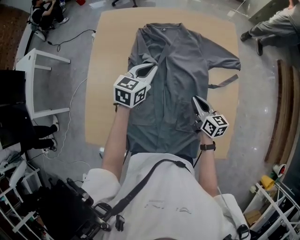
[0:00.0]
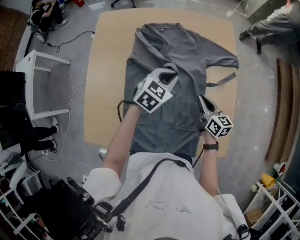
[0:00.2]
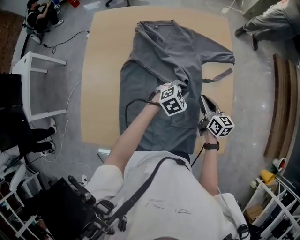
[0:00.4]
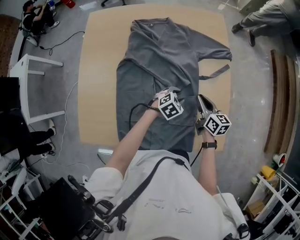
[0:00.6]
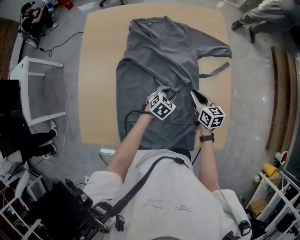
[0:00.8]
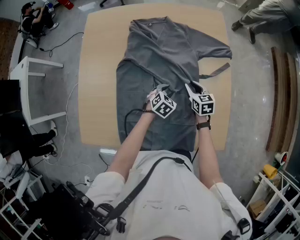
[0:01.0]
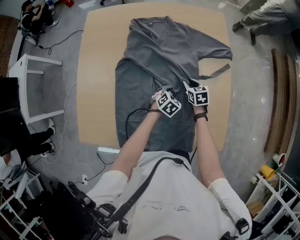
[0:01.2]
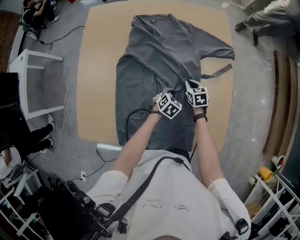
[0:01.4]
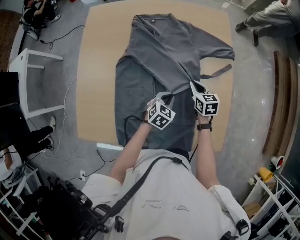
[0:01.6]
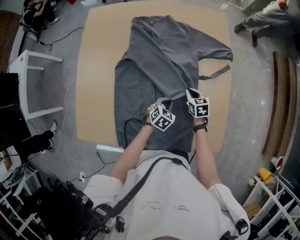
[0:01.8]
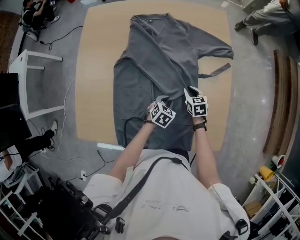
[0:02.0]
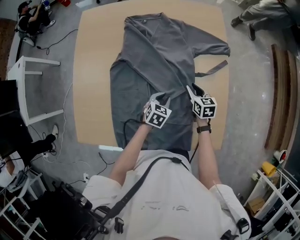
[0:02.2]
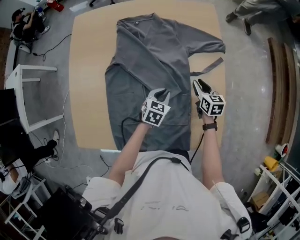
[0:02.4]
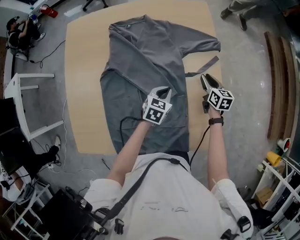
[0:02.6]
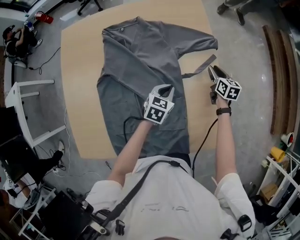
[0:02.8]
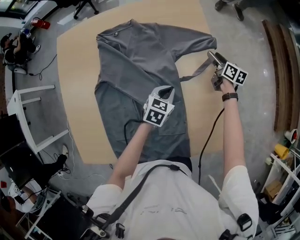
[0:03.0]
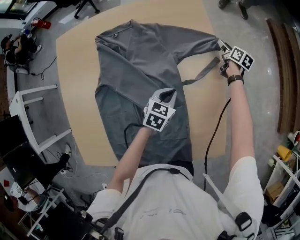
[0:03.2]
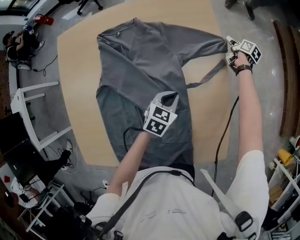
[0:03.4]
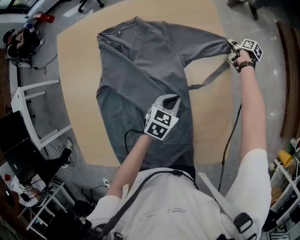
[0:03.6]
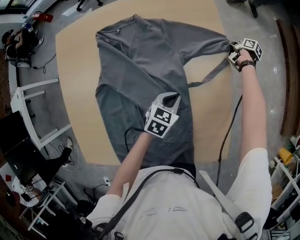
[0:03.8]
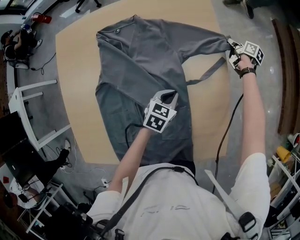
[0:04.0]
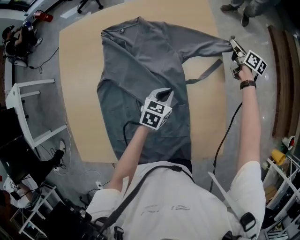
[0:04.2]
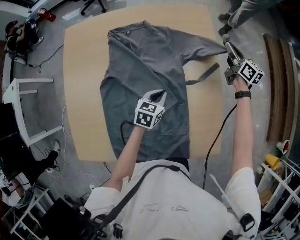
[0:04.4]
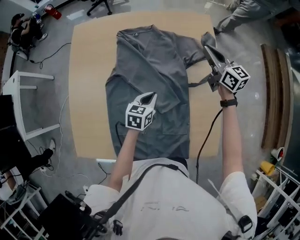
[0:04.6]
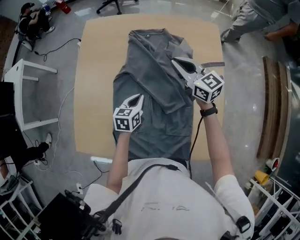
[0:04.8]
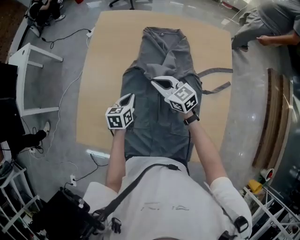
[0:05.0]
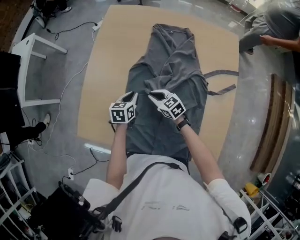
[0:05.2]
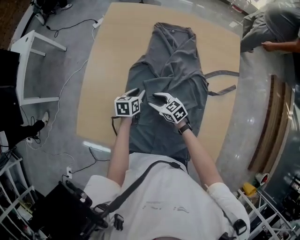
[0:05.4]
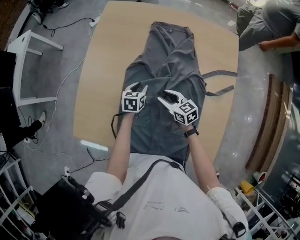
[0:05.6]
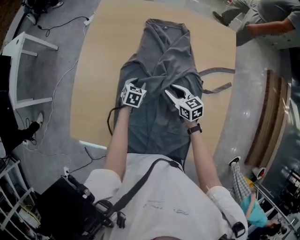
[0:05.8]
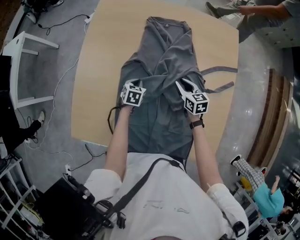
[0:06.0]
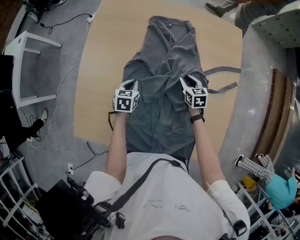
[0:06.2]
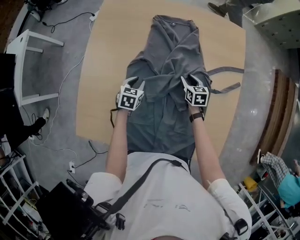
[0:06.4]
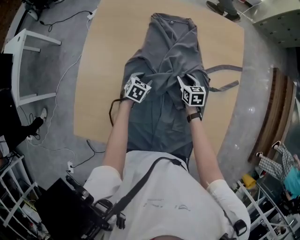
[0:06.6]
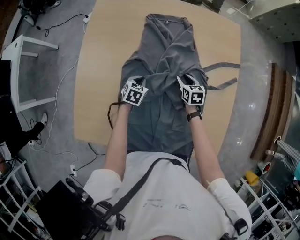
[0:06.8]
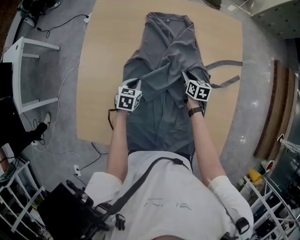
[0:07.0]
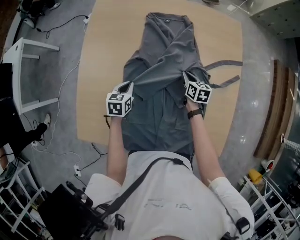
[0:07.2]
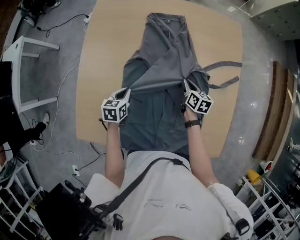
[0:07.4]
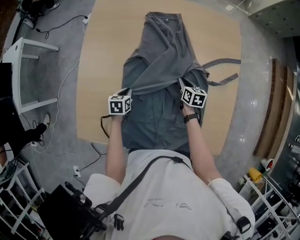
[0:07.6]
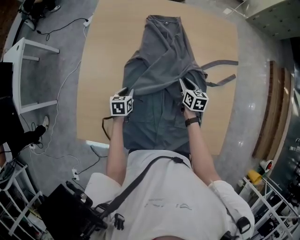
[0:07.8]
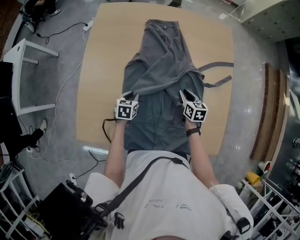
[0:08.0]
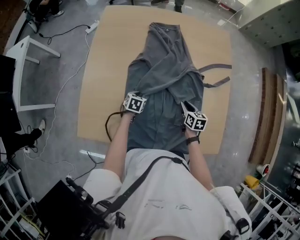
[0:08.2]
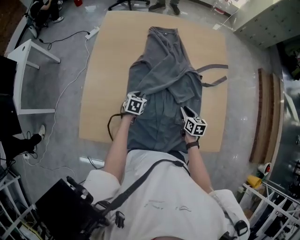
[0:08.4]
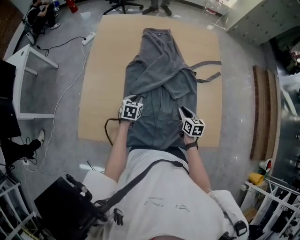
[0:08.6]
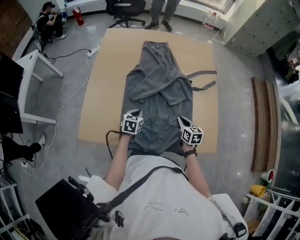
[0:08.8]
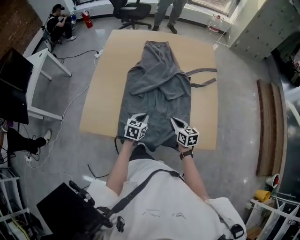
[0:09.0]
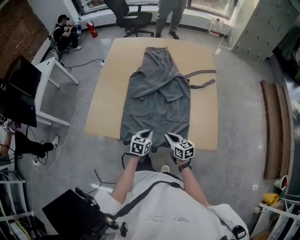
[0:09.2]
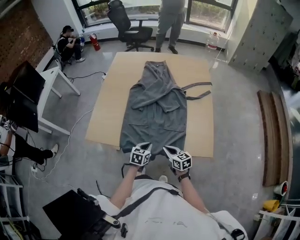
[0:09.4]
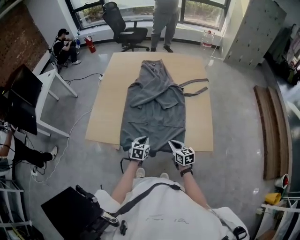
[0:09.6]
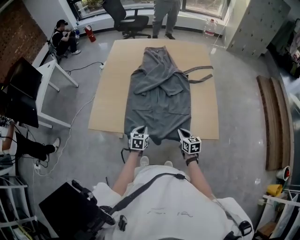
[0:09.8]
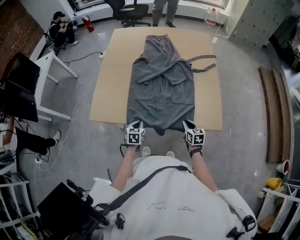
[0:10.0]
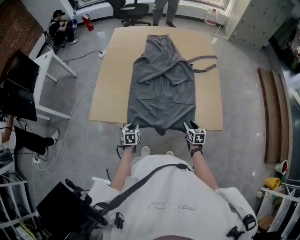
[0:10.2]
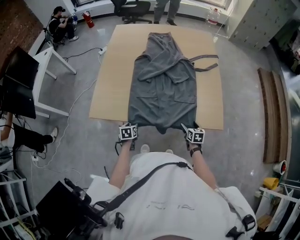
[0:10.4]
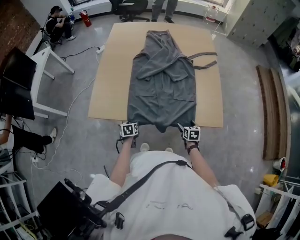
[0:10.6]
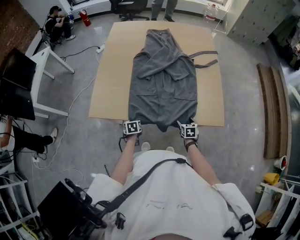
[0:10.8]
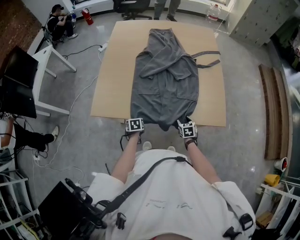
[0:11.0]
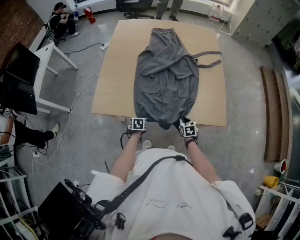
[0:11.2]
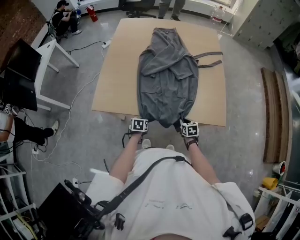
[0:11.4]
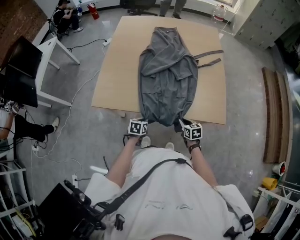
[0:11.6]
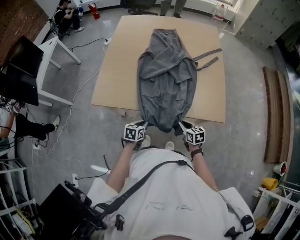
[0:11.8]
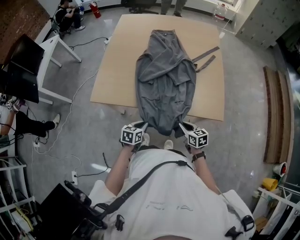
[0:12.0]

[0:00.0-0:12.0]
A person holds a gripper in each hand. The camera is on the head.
0:00.0 to 0:01.6: The right gripper heads downward, covering approximately 5 cm, and changes its angle by roughly 20 degrees. Meanwhile the left gripper heads downward, to the right and backward, covering roughly 25 cm, changes its angle by roughly 30 degrees, and opens, then closes again.
0:01.6 to 0:03.0: The left gripper shifts approximately 15 cm forward and to the right. The right gripper is displaced to the right and forward by some 30 cm, turns by roughly 30 degrees, and opens.
0:03.0 to 0:04.4: The right gripper is displaced upward by approximately 15 cm, rotates roughly 20 degrees, and closes its fingers; the left gripper moves to the left, roughly 5 cm.
0:04.4 to 0:06.0: The left gripper ends up about 25 cm from where it was, swivels approximately 30 degrees, and opens, then closes again; the right gripper shifts by roughly 40 cm, and changes its angle by some 30 degrees.
0:06.0 to 0:07.6: The right gripper moves up and down over some 5 cm, changing direction 2 times, and changes its angle by approximately 20 degrees, while the left gripper goes about 10 cm to the left and backward, and opens, then closes once more.
0:07.6 to 0:09.0: The left gripper heads backward, to the right and upward, covering roughly 25 cm, and turns by approximately 20 degrees, while the right gripper is displaced backward and upward by approximately 25 cm, and changes its angle by some 20 degrees.
0:09.0 to 0:10.4: The left gripper goes about 25 cm to the left, backward and downward, rotates roughly 30 degrees, and opens, while the right gripper moves backward, downward and to the right, approximately 20 cm, turns by about 20 degrees, and opens up.
0:10.4 to 0:12.0: The right gripper is displaced backward, upward and to the left by roughly 15 cm, rotates roughly 30 degrees, and closes up. The left gripper moves to the right, upward and backward, some 15 cm, turns by some 20 degrees, and closes.

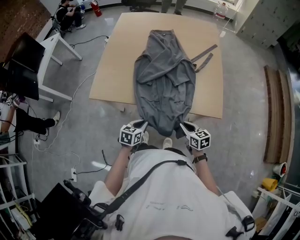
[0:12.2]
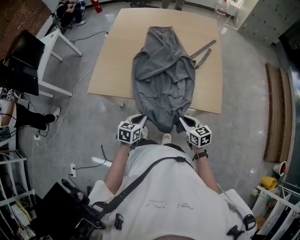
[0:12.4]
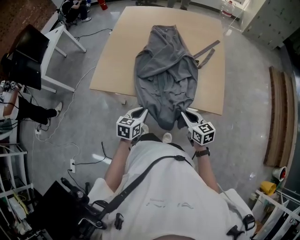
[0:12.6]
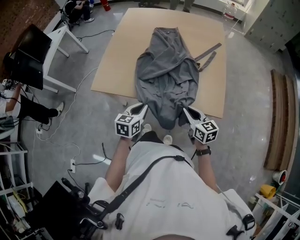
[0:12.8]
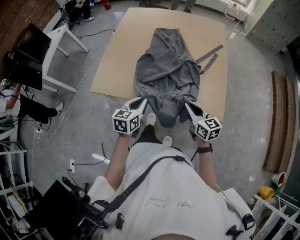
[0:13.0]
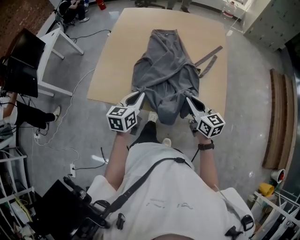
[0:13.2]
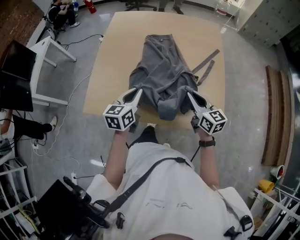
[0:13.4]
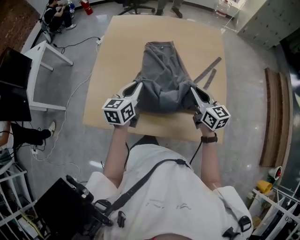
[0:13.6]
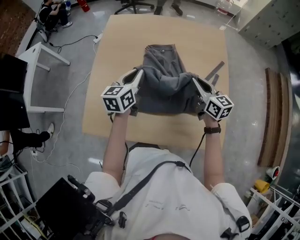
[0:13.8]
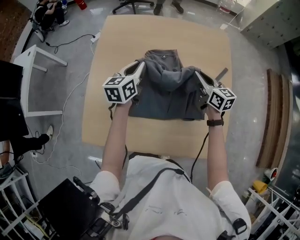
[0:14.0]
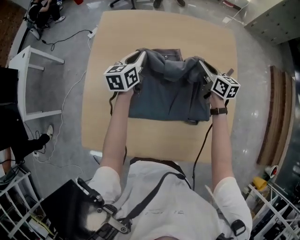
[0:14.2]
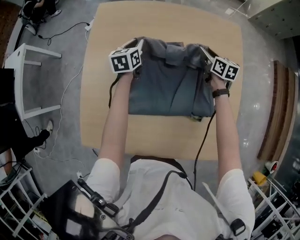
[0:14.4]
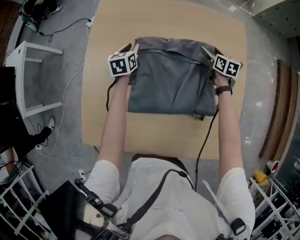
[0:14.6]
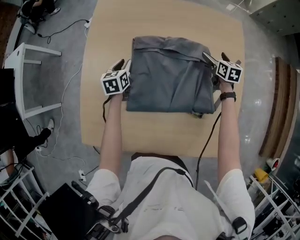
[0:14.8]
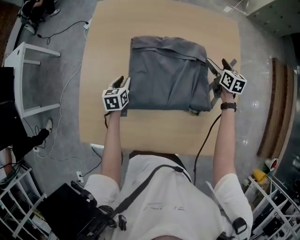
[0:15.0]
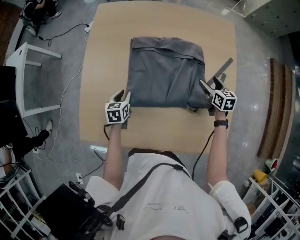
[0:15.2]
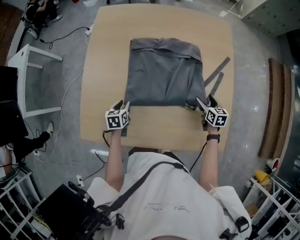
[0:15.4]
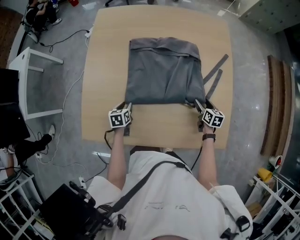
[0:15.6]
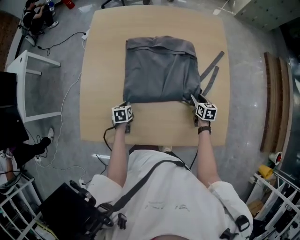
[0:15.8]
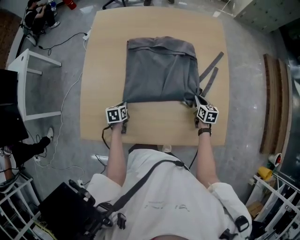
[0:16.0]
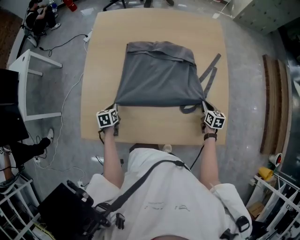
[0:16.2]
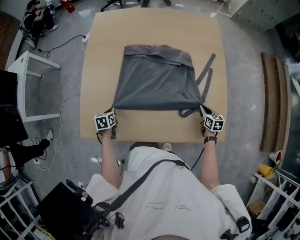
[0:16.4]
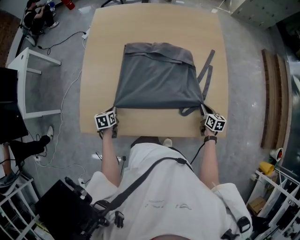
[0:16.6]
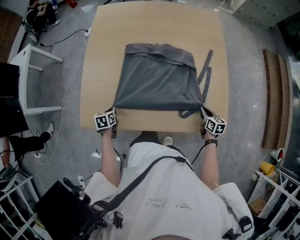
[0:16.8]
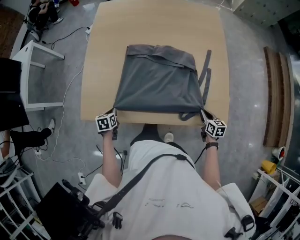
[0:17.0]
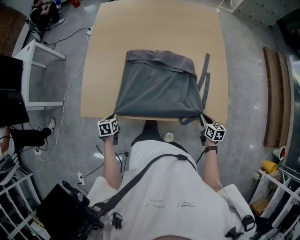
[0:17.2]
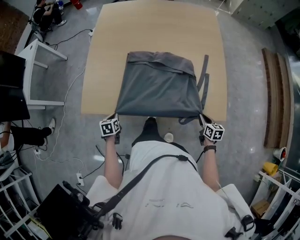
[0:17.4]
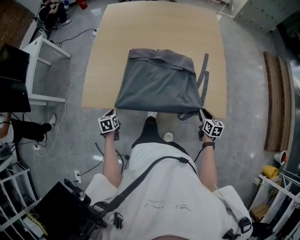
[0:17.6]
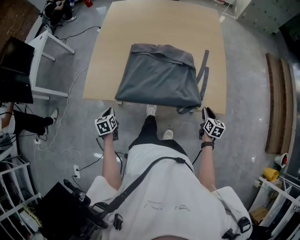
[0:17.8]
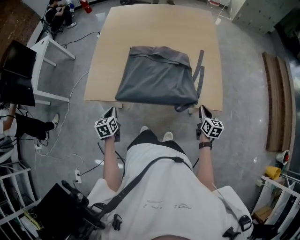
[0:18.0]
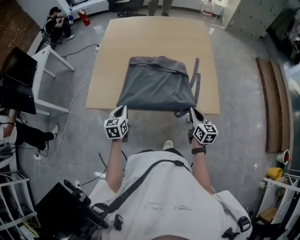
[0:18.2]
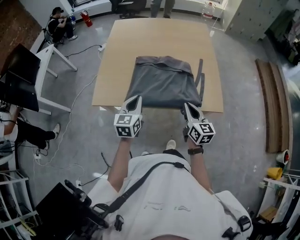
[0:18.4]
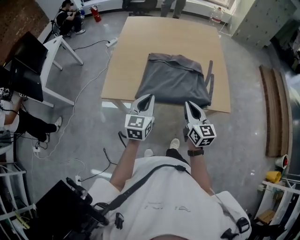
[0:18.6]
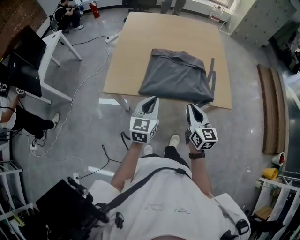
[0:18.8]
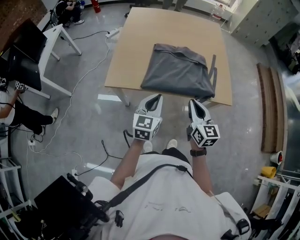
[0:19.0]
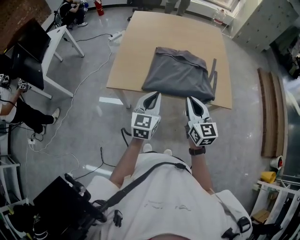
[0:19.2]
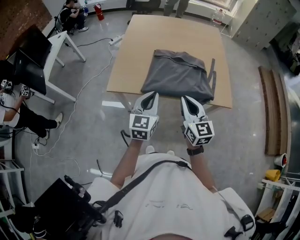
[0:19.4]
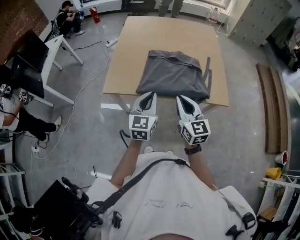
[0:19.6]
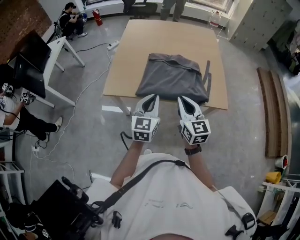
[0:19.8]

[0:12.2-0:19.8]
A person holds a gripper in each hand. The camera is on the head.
0:12.2 to 0:13.8: The two grippers travel together, forward, roughly 40 cm. The right gripper turns by approximately 20 degrees. Meanwhile the left gripper is displaced upward by approximately 20 cm, and rotates some 30 degrees.
0:13.8 to 0:15.2: The right gripper is displaced downward and to the right by some 20 cm, goes forward and returns, about 25 cm each way, rotates about 30 degrees, and opens its fingers; the left gripper heads downward, covering roughly 25 cm, goes forward and returns, roughly 25 cm each way, angles its fingers downward, by about 30 degrees, and opens up.
0:15.2 to 0:16.8: The left gripper travels backward by approximately 20 cm, and closes its fingers, while the right gripper heads backward, covering about 30 cm, and closes.
0:16.8 to 0:18.2: The right gripper travels upward, backward and to the left by about 20 cm, and swivels some 20 degrees. Meanwhile the left gripper is displaced upward, backward and to the right by approximately 25 cm, and swivels roughly 30 degrees.
0:18.2 to 0:19.8: The right gripper goes roughly 25 cm to the left and upward, and changes its angle by roughly 20 degrees, while the left gripper moves upward and backward, some 20 cm, and turns by roughly 30 degrees.

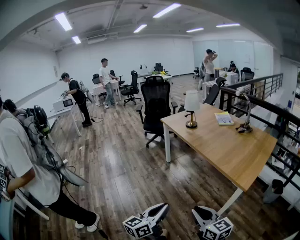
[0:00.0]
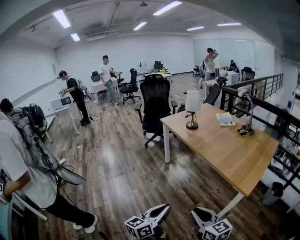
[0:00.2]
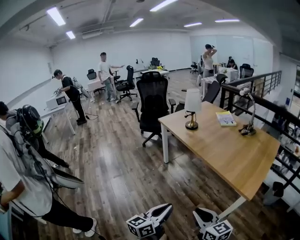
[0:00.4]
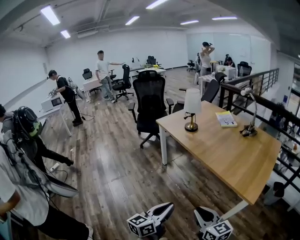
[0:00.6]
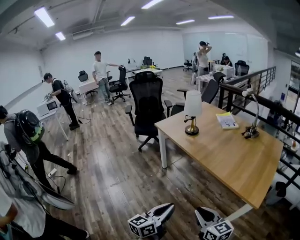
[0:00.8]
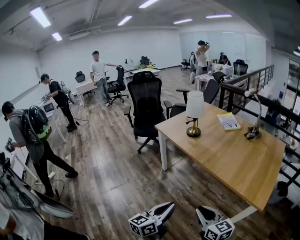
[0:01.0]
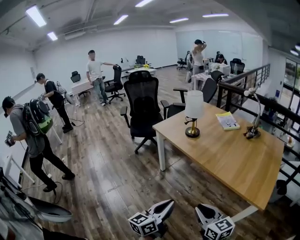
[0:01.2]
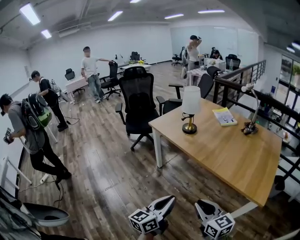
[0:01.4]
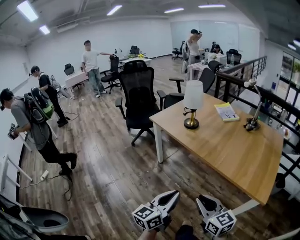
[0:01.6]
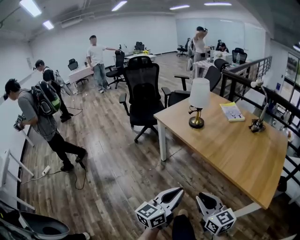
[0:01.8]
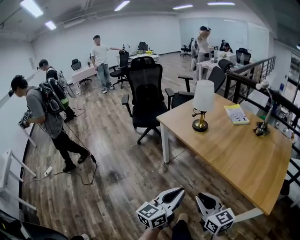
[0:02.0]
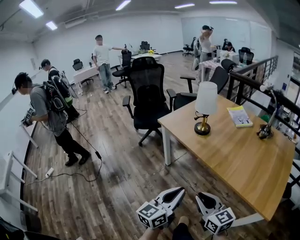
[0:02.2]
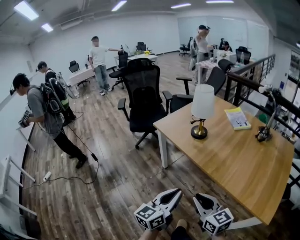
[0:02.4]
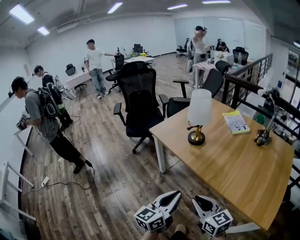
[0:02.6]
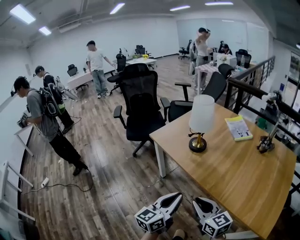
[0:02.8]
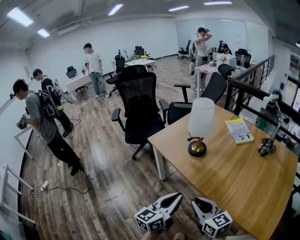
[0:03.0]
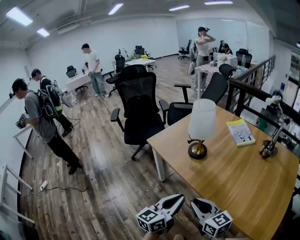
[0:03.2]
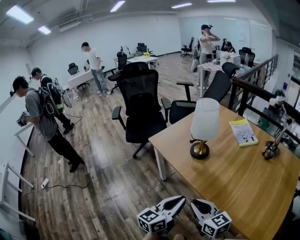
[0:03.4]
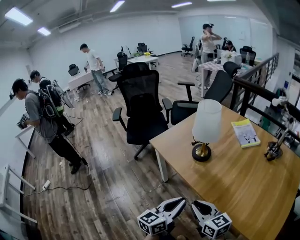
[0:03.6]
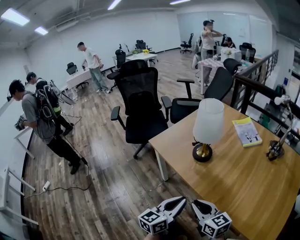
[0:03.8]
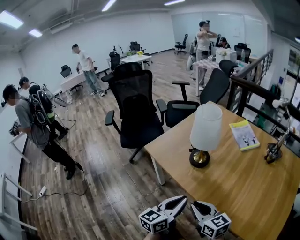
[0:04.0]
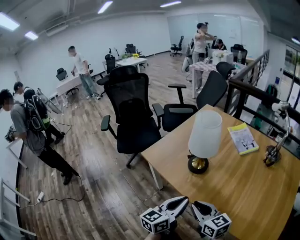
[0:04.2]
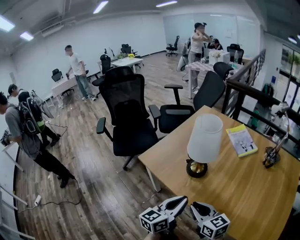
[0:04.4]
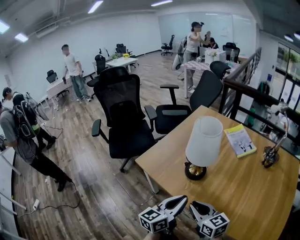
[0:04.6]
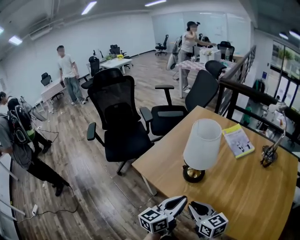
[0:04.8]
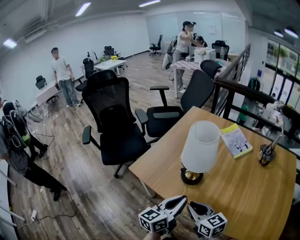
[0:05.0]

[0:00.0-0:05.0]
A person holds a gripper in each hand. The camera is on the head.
0:00.0 to 0:01.6: The left gripper goes approximately 35 cm forward; the right gripper is displaced forward and to the left by roughly 35 cm.
0:01.6 to 0:03.4: The two grippers go about 30 cm forward.
0:03.4 to 0:05.0: Both grippers travel together forward, roughly 20 cm.
